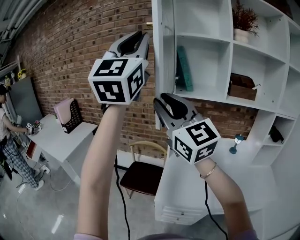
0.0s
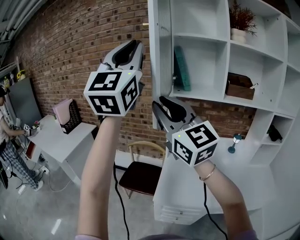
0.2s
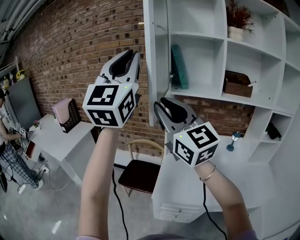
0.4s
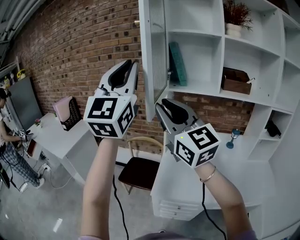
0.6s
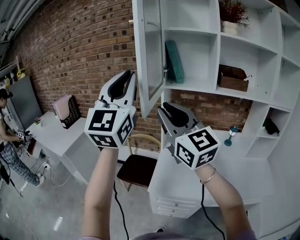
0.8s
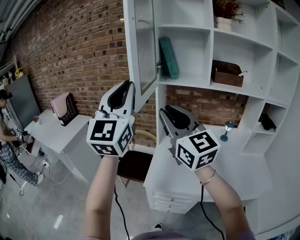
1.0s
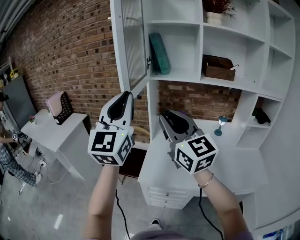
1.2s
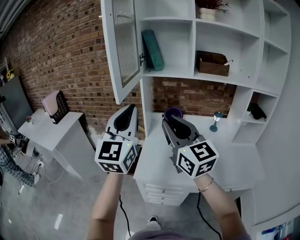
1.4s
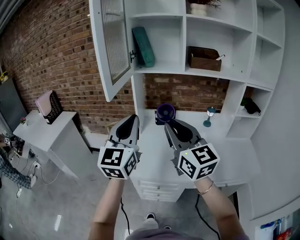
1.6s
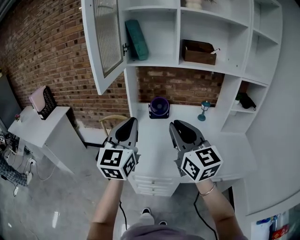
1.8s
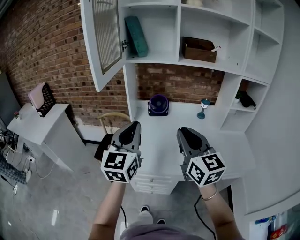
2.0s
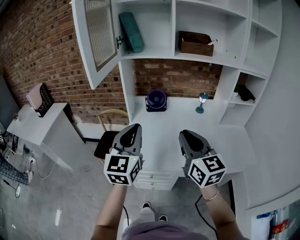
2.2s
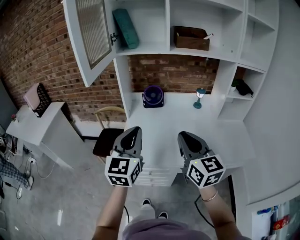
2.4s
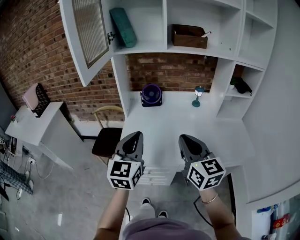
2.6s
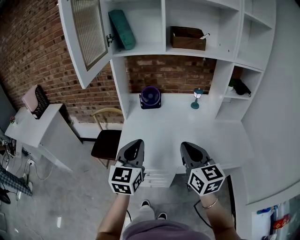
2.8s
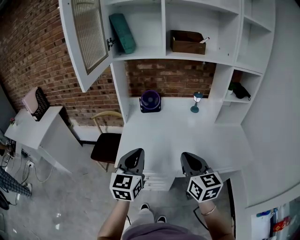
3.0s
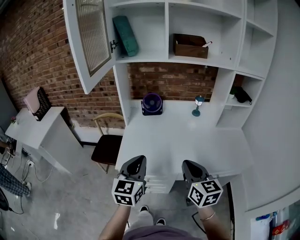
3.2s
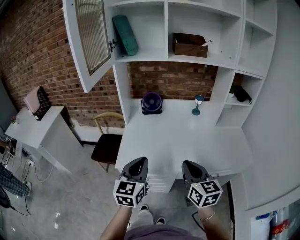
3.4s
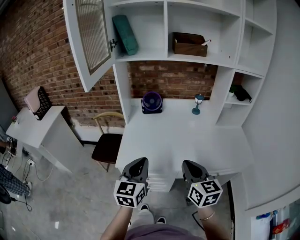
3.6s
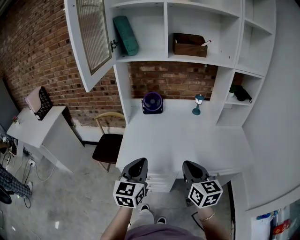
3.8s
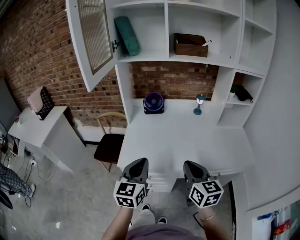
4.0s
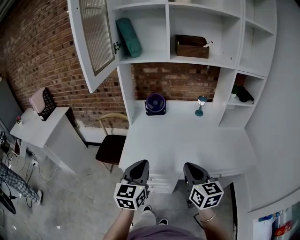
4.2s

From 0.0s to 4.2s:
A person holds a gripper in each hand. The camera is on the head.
From 0.0s to 1.4s: The right gripper shifts roughly 25 cm to the right, downward and backward; the left gripper heads downward, covering some 25 cm.
From 1.4s to 2.8s: The right gripper travels downward, to the right and backward by approximately 25 cm, and swivels roughly 30 degrees, while the left gripper is displaced downward and to the right by approximately 25 cm, and turns by about 30 degrees.
From 2.8s to 4.2s: The right gripper travels downward by approximately 5 cm. Meanwhile the left gripper shifts by roughly 5 cm.

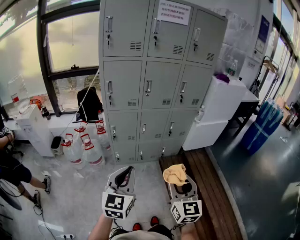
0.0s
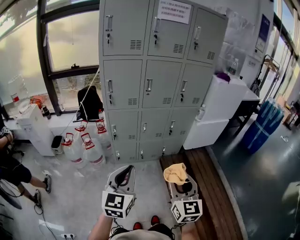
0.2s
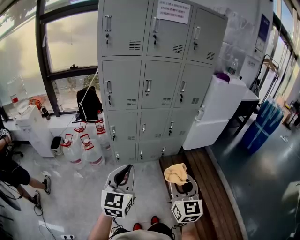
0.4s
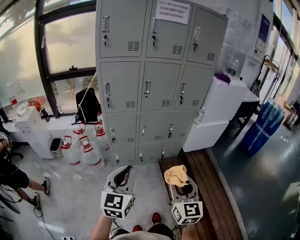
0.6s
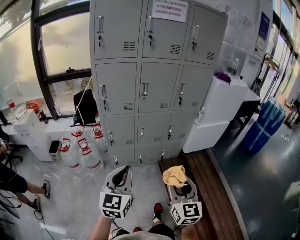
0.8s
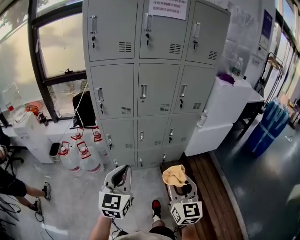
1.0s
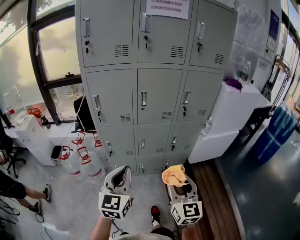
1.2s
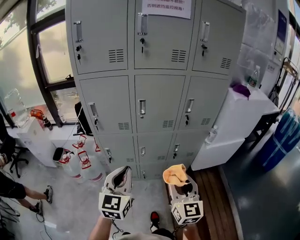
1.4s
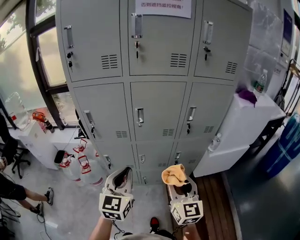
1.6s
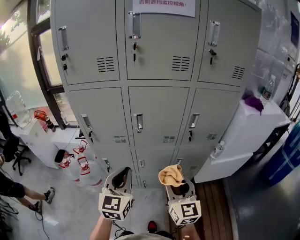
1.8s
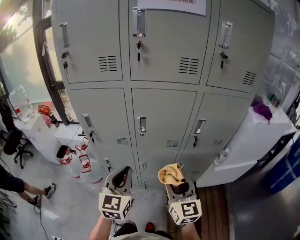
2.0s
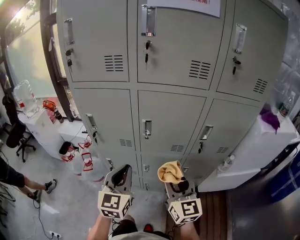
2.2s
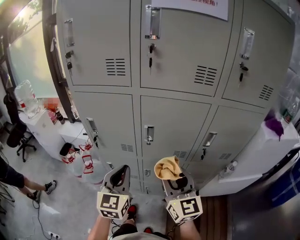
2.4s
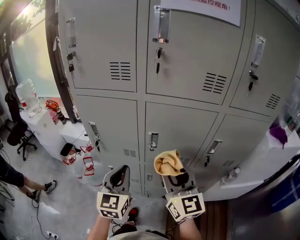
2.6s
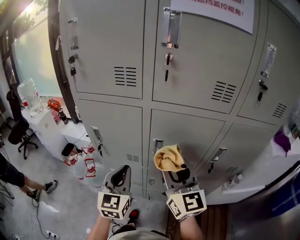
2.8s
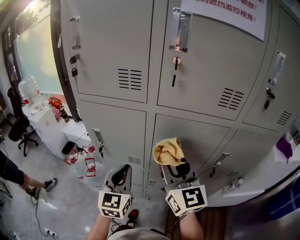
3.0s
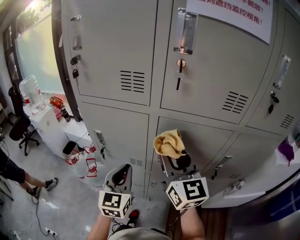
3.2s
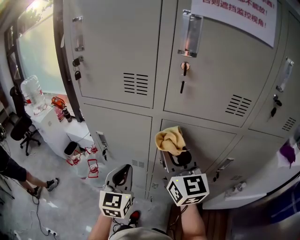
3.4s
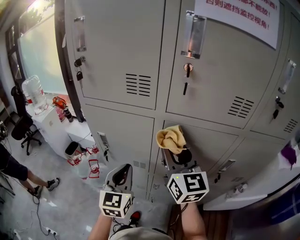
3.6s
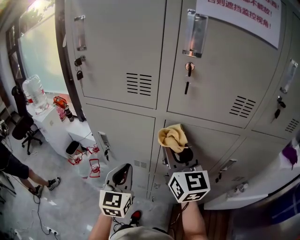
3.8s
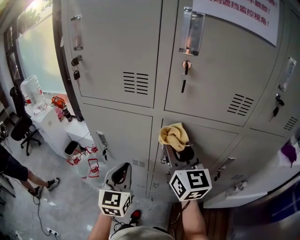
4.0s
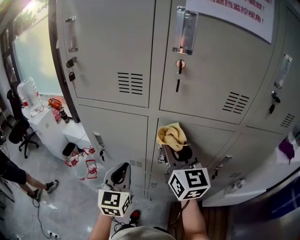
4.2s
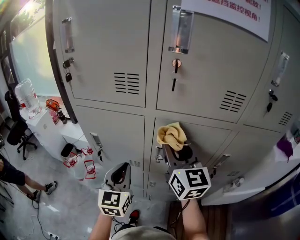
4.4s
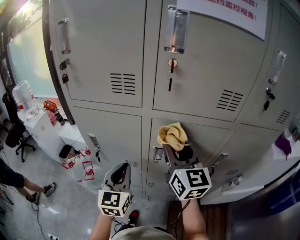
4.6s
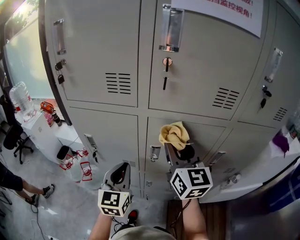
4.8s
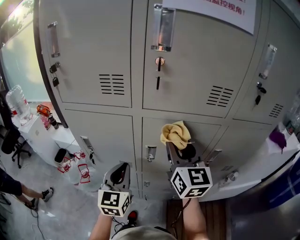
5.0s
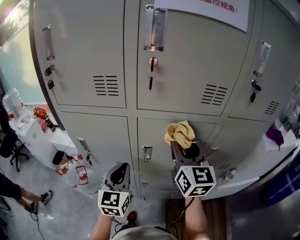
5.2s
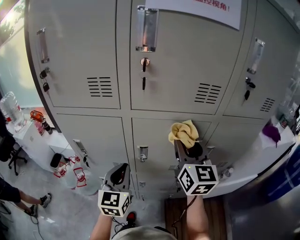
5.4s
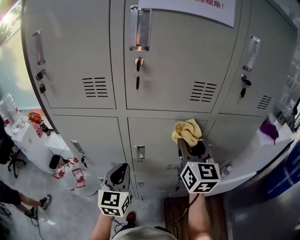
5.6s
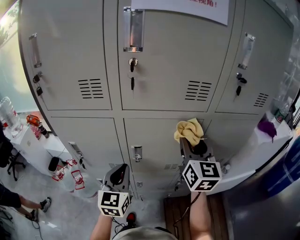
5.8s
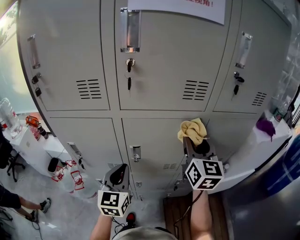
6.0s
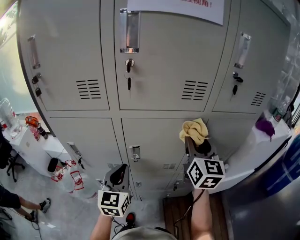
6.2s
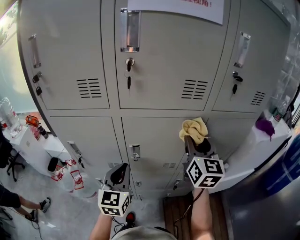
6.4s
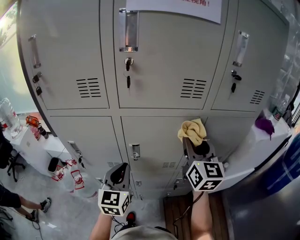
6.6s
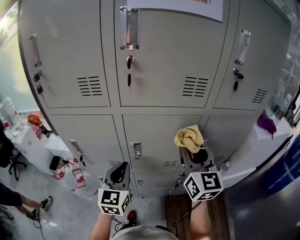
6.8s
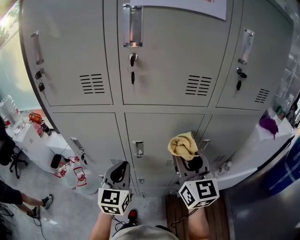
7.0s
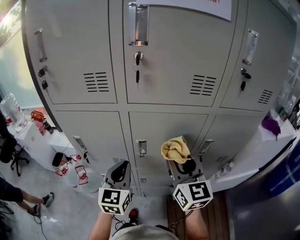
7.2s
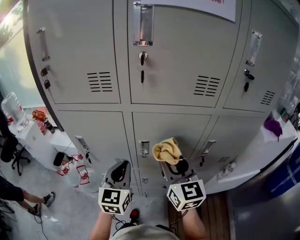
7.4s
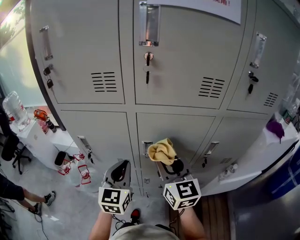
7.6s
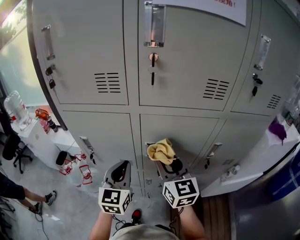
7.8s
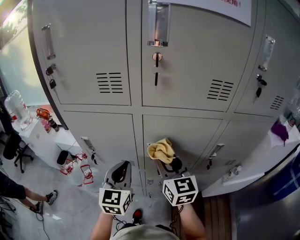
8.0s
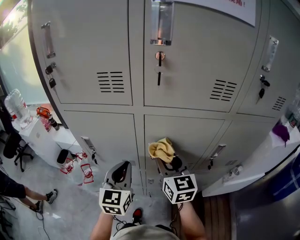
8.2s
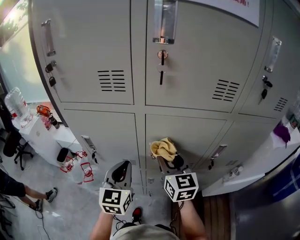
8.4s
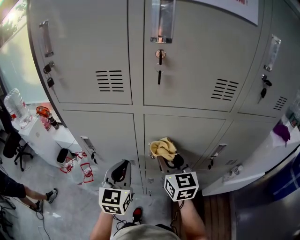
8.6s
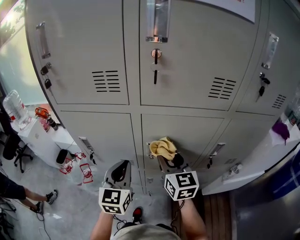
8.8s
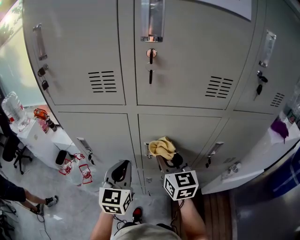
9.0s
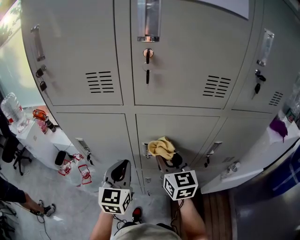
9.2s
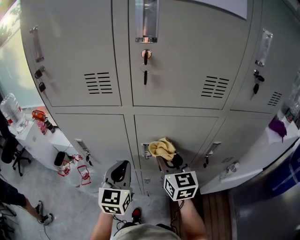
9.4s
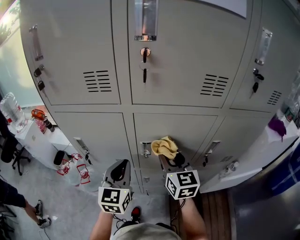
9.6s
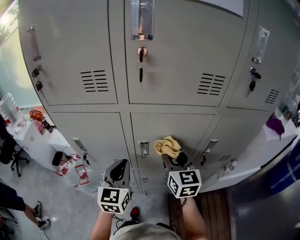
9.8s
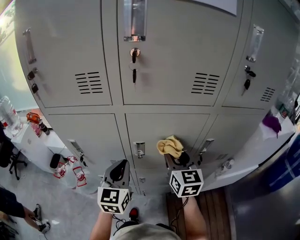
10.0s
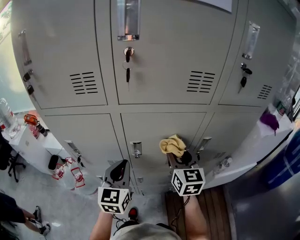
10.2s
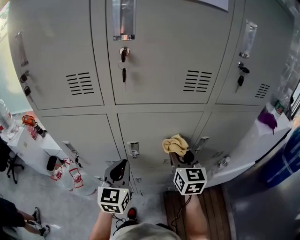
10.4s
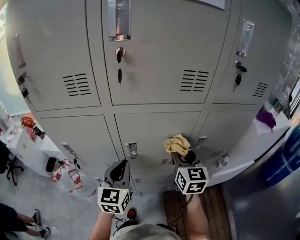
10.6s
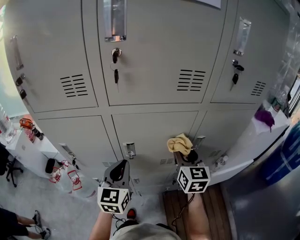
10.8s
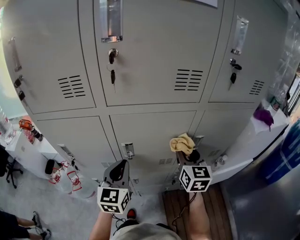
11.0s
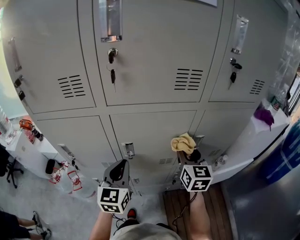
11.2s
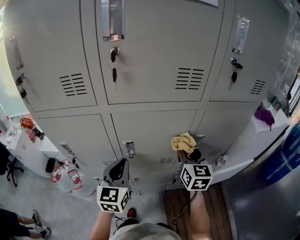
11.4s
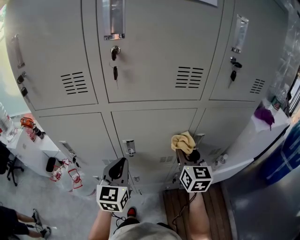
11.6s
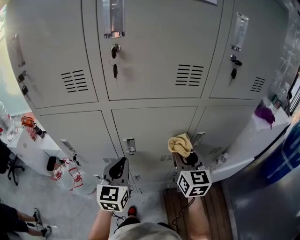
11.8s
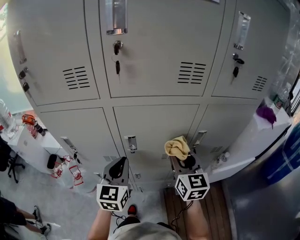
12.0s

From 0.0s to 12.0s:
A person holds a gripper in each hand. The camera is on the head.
From 0.0s to 1.6s: The grippers both shift forward by about 35 cm.
From 1.6s to 3.0s: The right gripper is displaced forward and upward by roughly 30 cm, and rotates some 20 degrees; the left gripper heads forward, covering roughly 20 cm.
From 3.0s to 4.4s: The right gripper moves forward, roughly 5 cm.
From 4.4s to 6.0s: The right gripper moves to the right, roughly 20 cm, and rotates roughly 20 degrees. Meanwhile the left gripper travels to the right by approximately 10 cm.
From 6.0s to 7.6s: The right gripper travels to the left and downward by some 15 cm, and swivels some 20 degrees.
From 7.6s to 9.0s: The right gripper moves some 5 cm.
From 9.0s to 10.4s: The right gripper is displaced to the right by approximately 10 cm. Meanwhile the left gripper shifts approximately 5 cm to the right.
From 10.4s to 12.0s: The grippers stay close to where they were, moving slightly.

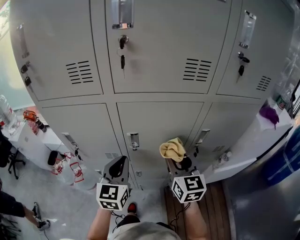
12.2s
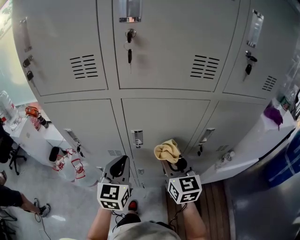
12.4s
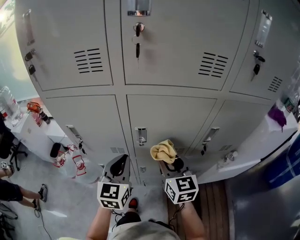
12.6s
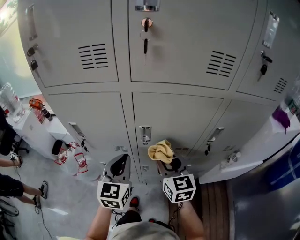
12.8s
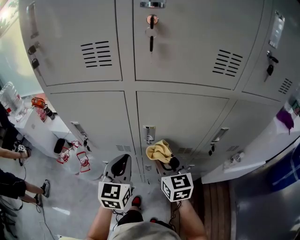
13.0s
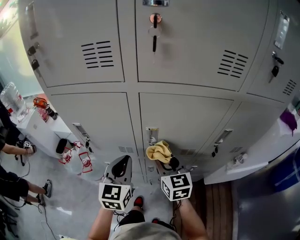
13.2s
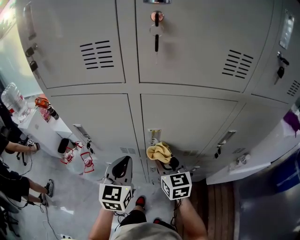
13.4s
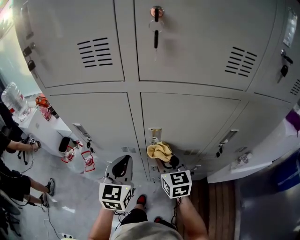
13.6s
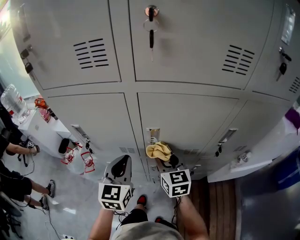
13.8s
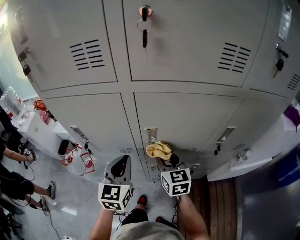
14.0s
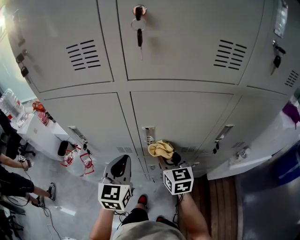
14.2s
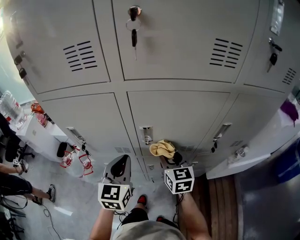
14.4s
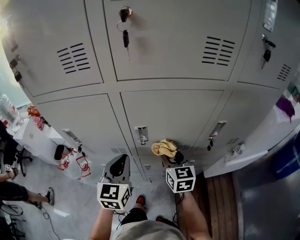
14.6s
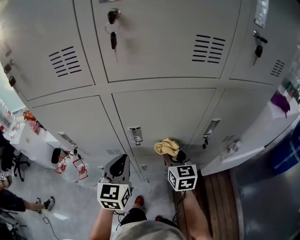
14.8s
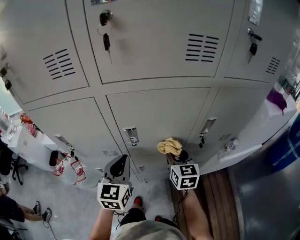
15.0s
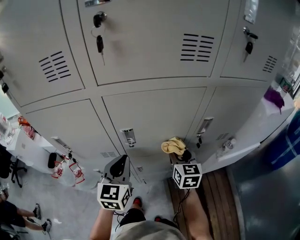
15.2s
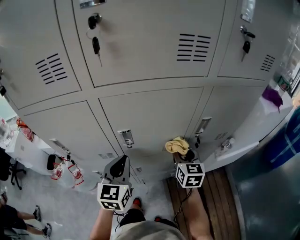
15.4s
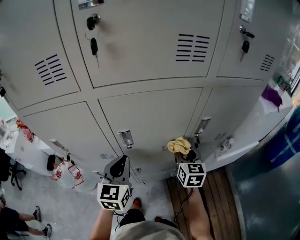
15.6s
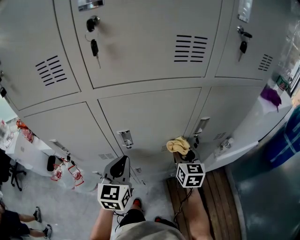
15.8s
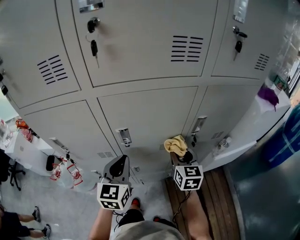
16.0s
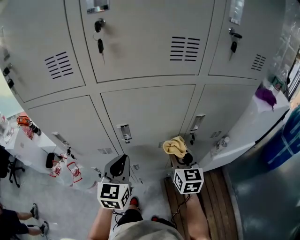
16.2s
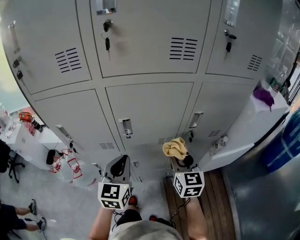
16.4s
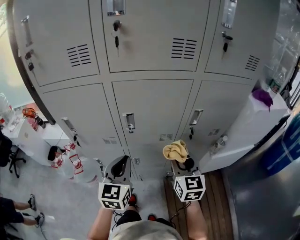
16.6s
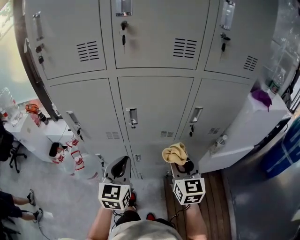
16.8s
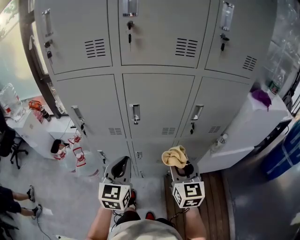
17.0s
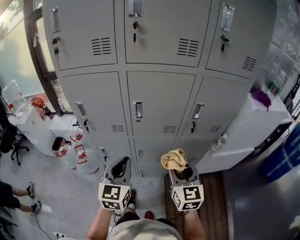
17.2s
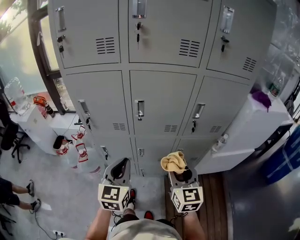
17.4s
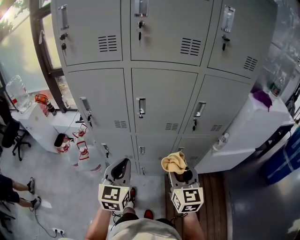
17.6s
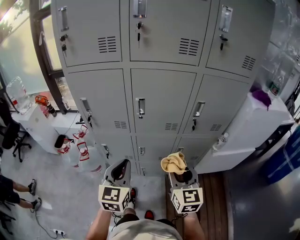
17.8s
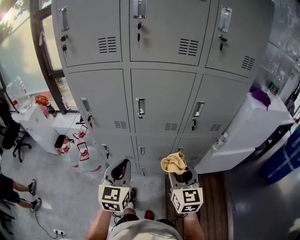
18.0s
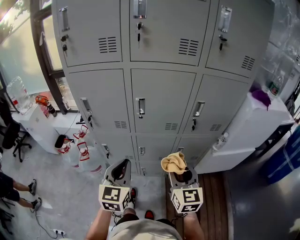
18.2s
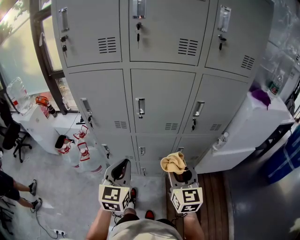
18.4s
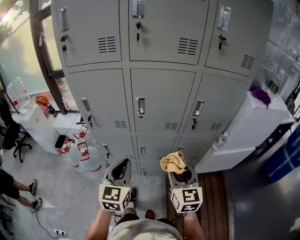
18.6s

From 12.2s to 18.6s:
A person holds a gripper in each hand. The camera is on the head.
From 12.2s to 13.8s: The right gripper travels to the left and downward by some 15 cm. The left gripper shifts about 5 cm to the left.
From 13.8s to 15.4s: The right gripper goes approximately 20 cm to the right, and changes its angle by about 20 degrees. Meanwhile the left gripper travels to the right by some 10 cm.
From 15.4s to 17.0s: The right gripper is displaced backward and upward by approximately 20 cm, while the left gripper heads backward, covering approximately 15 cm.
From 17.0s to 18.6s: The grippers both shift backward by about 5 cm.

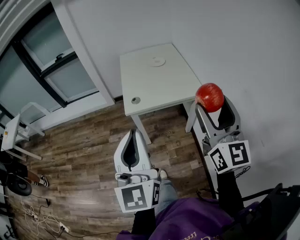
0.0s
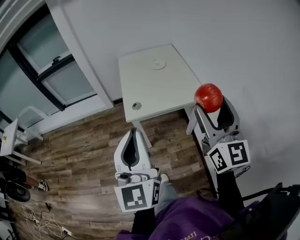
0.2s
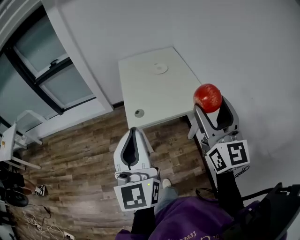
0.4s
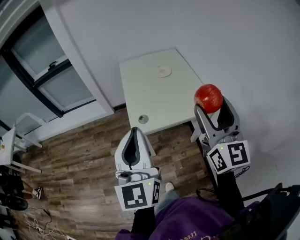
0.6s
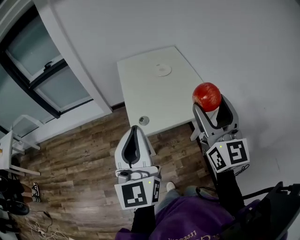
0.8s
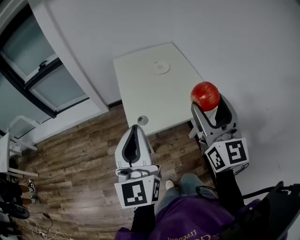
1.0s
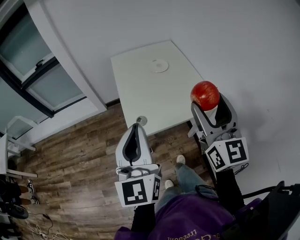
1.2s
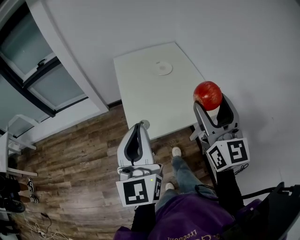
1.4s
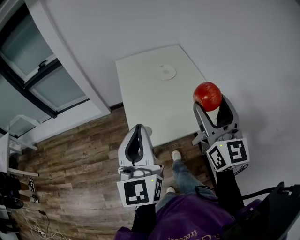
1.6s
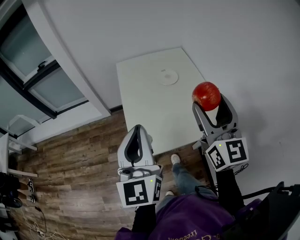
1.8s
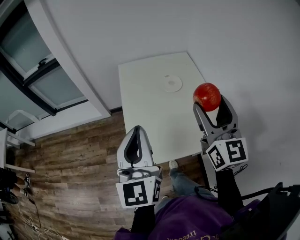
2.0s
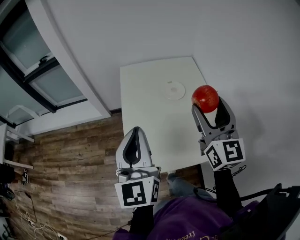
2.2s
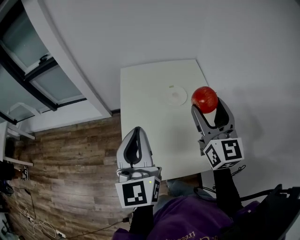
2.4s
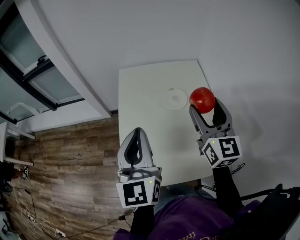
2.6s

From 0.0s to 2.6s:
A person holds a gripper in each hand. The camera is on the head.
From 0.0s to 1.2s: Both grippers travel together forward, some 20 cm.
From 1.2s to 2.6s: Both grippers travel together forward, about 30 cm.
